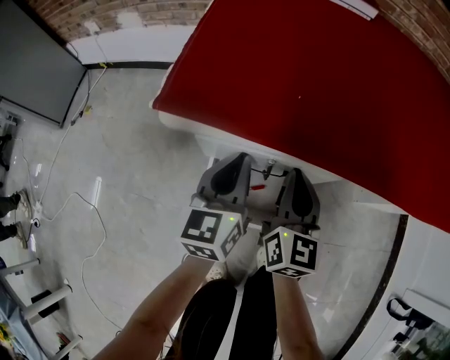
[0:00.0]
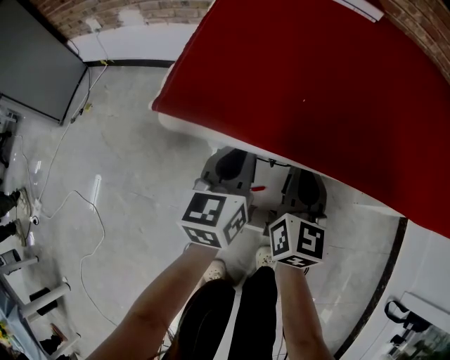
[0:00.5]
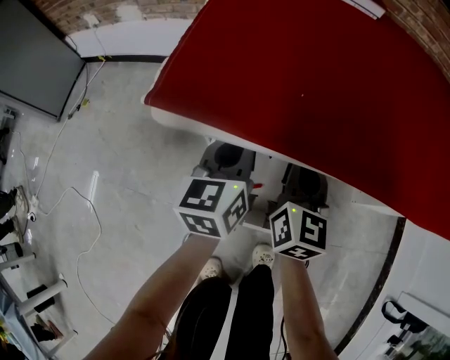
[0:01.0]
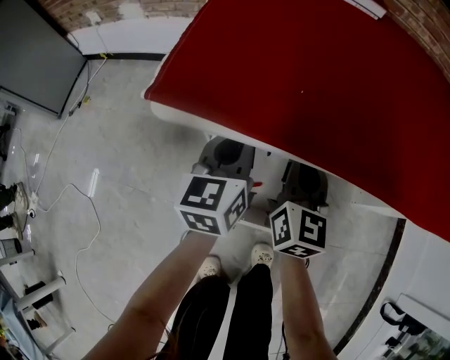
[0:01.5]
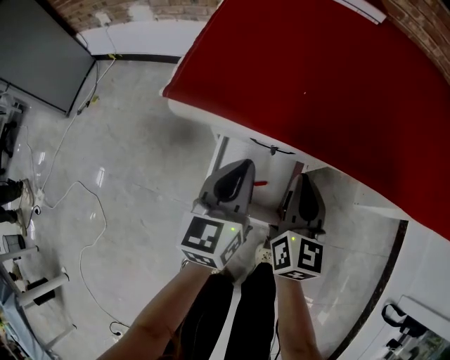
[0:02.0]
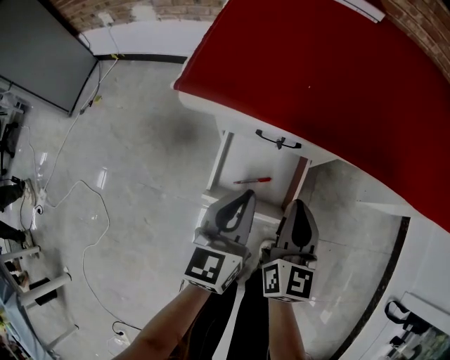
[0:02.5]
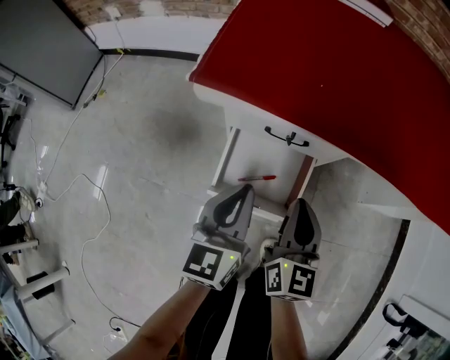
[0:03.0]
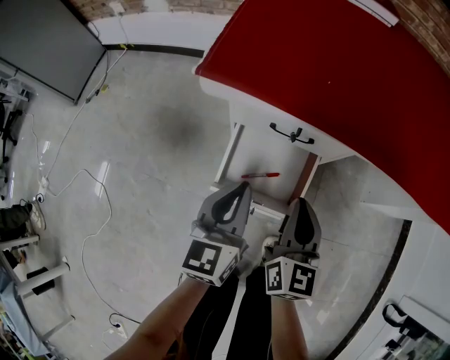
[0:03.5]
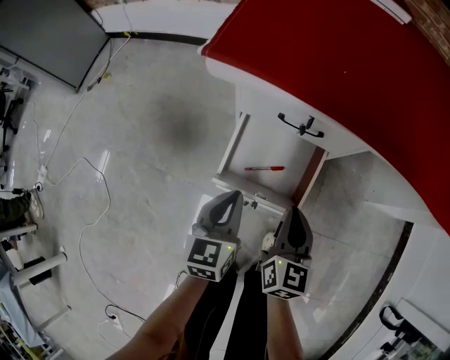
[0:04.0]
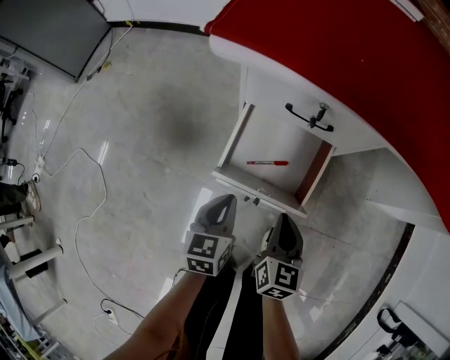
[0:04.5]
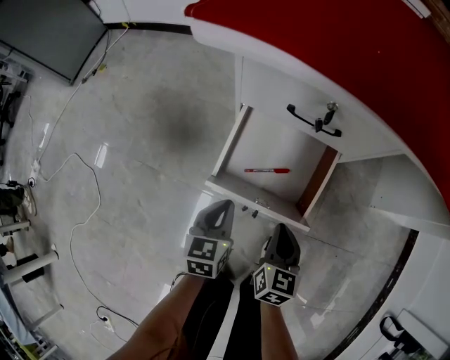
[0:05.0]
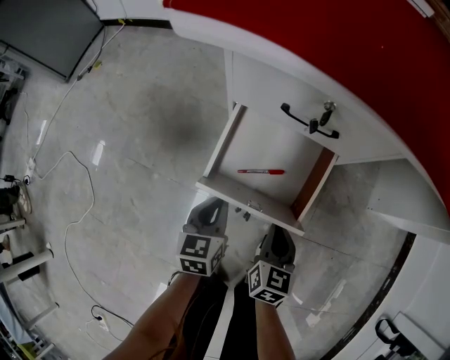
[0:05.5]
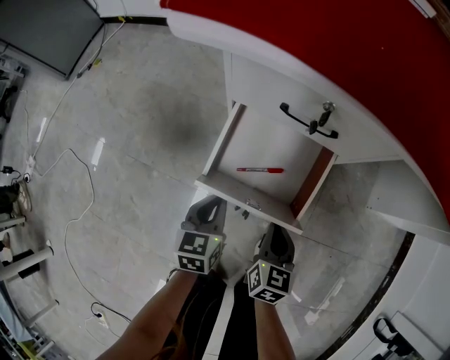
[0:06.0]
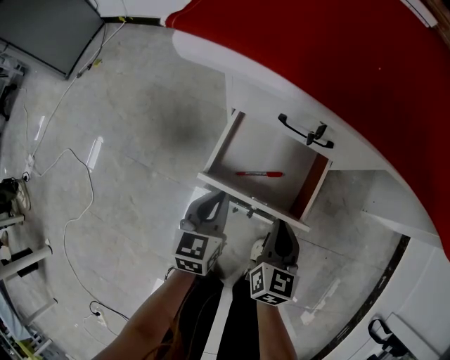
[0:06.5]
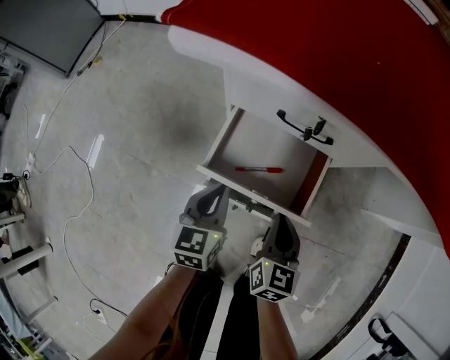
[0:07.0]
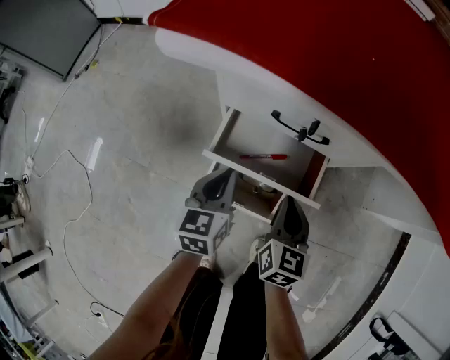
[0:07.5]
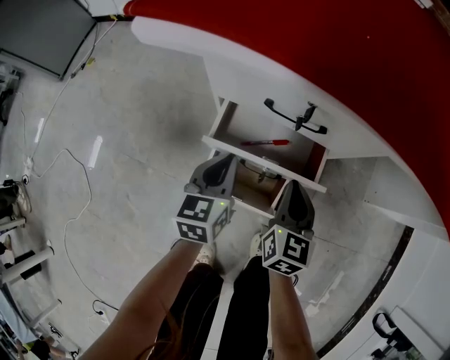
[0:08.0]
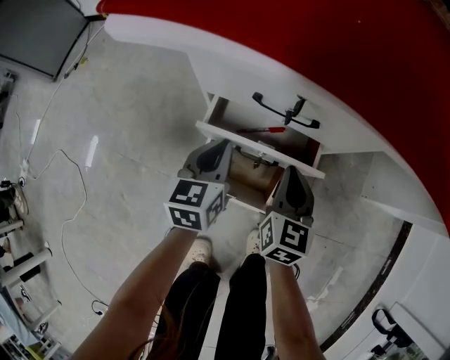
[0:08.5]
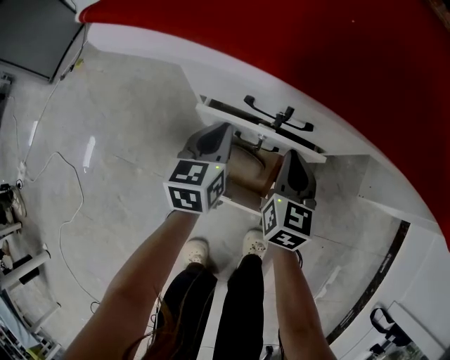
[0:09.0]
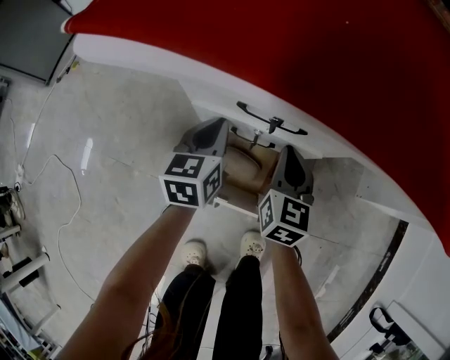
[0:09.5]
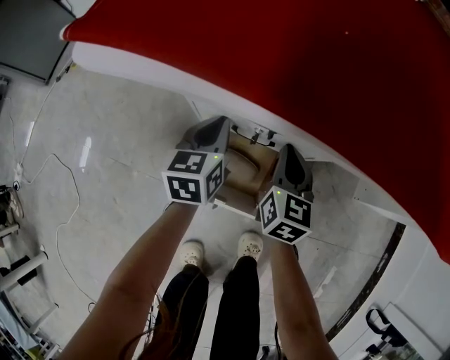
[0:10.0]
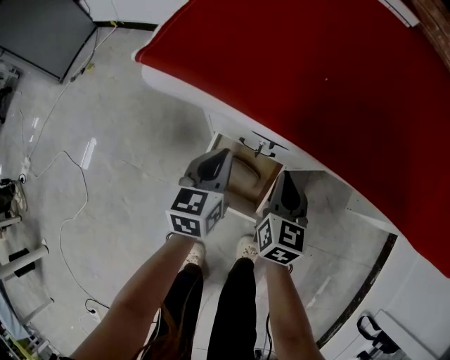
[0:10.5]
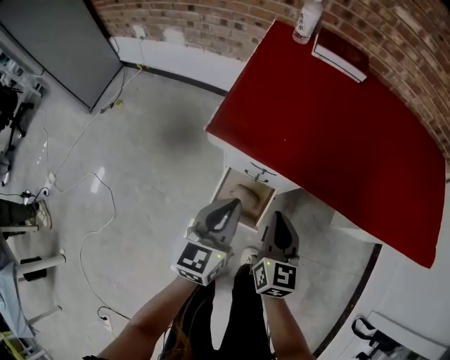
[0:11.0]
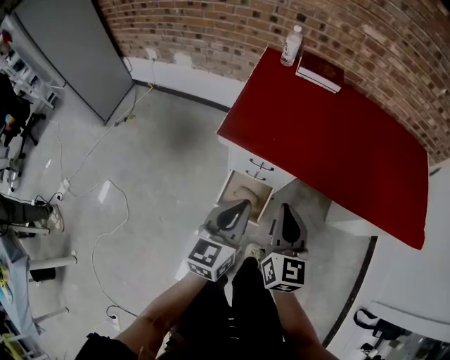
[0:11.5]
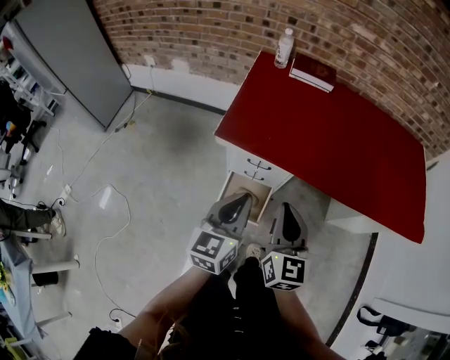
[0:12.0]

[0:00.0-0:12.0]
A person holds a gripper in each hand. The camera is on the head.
0:00.0 to 0:02.0: There are only small adjustments of the grippers.
0:02.0 to 0:04.0: Both grippers travel together backward and downward, some 15 cm.
0:04.0 to 0:06.0: The grippers both shift downward by some 15 cm.
0:06.0 to 0:08.0: The two grippers go some 10 cm forward.
0:08.0 to 0:10.0: The grippers both shift forward by about 10 cm.
0:10.0 to 0:12.0: Both grippers travel together upward and backward, about 50 cm. The left gripper rotates some 20 degrees.

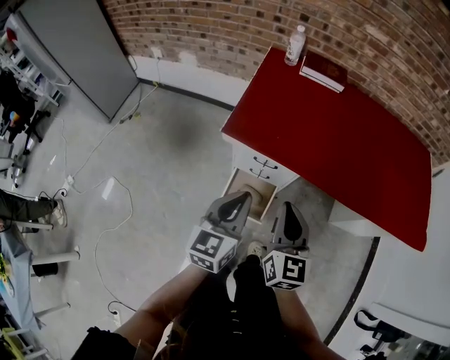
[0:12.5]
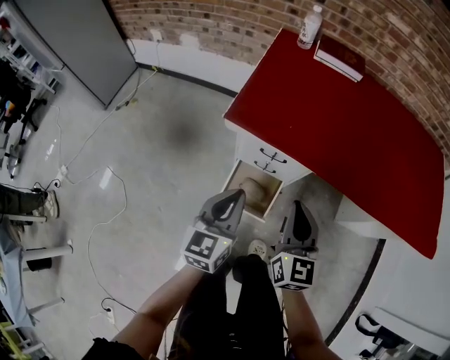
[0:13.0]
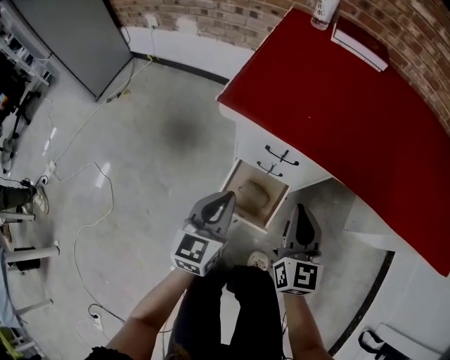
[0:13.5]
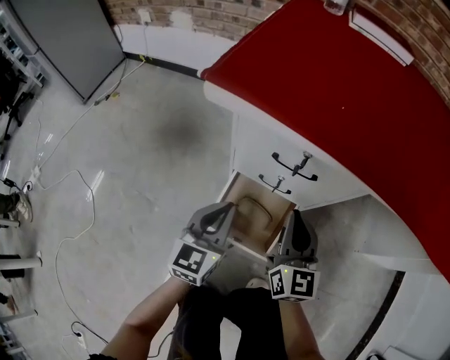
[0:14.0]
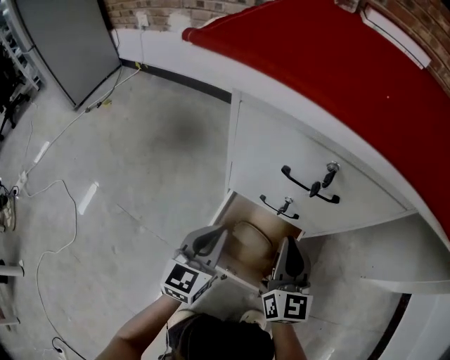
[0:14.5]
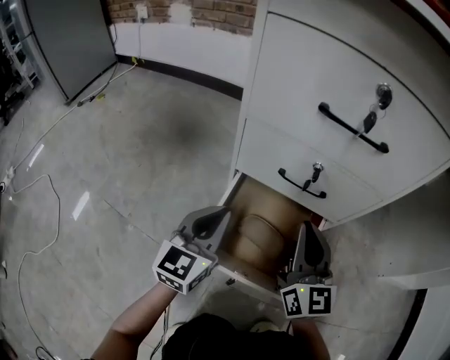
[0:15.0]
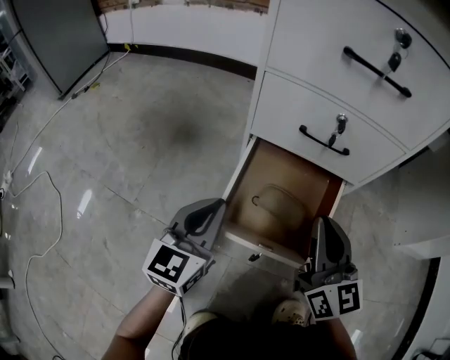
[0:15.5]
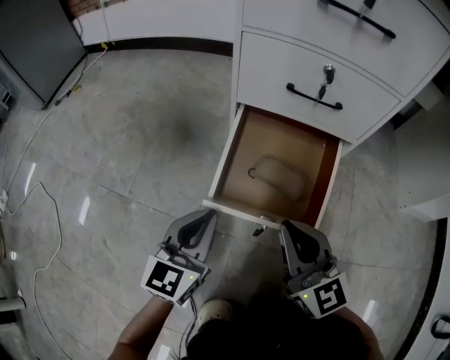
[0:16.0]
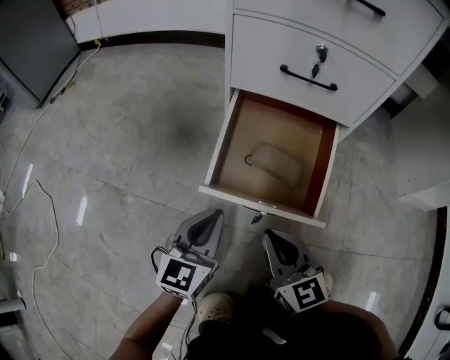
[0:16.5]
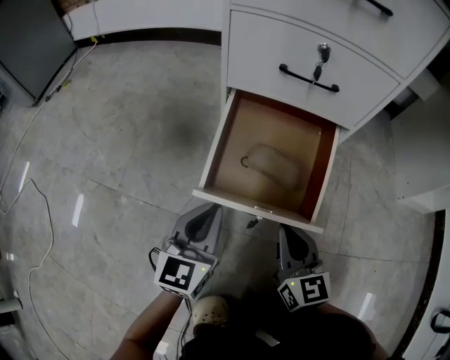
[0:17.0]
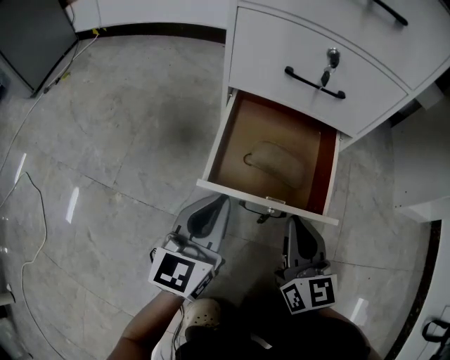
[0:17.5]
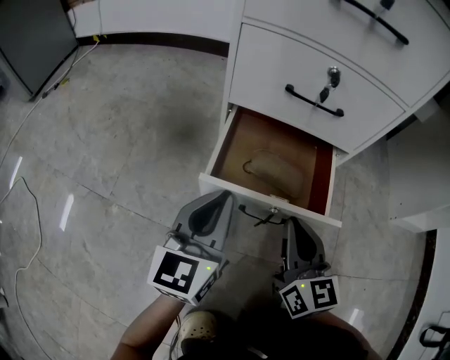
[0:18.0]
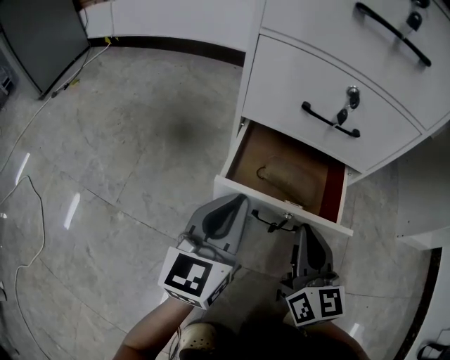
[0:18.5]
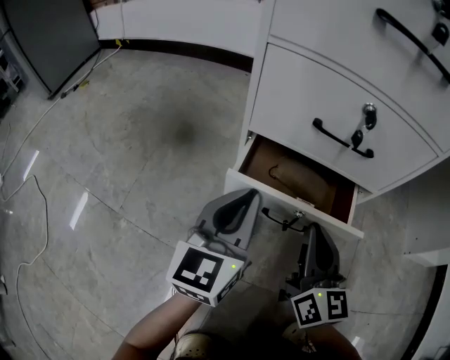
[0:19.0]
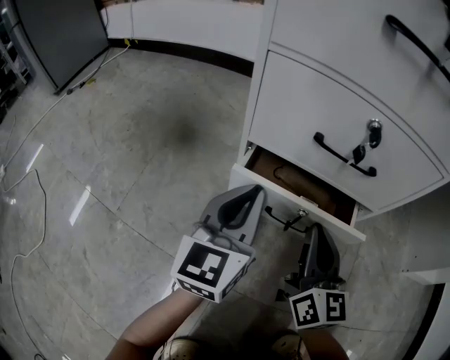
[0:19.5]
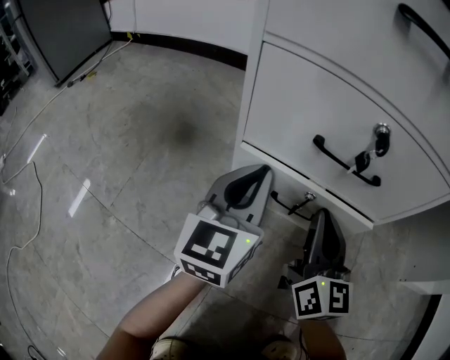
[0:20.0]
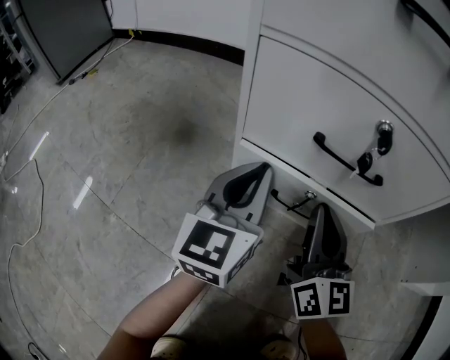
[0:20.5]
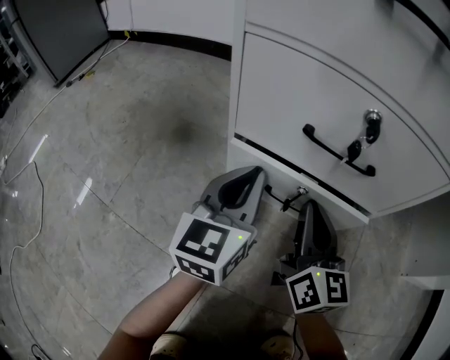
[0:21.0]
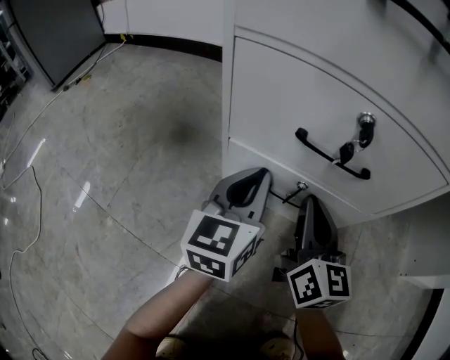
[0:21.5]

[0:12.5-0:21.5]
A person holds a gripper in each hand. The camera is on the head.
0:12.5 to 0:14.5: The two grippers go approximately 50 cm downward.
0:14.5 to 0:17.0: Both grippers move downward and backward, roughly 25 cm.
0:17.0 to 0:19.5: The grippers both shift forward by approximately 15 cm.
0:19.5 to 0:21.5: Both grippers move forward, about 5 cm.

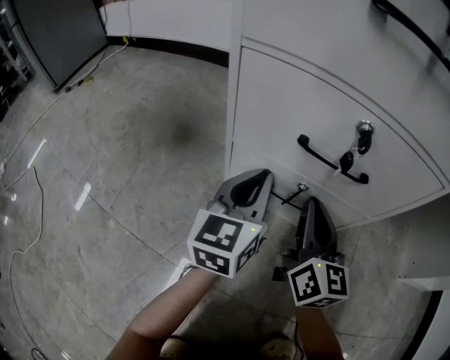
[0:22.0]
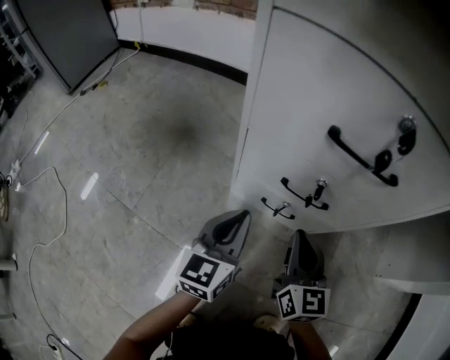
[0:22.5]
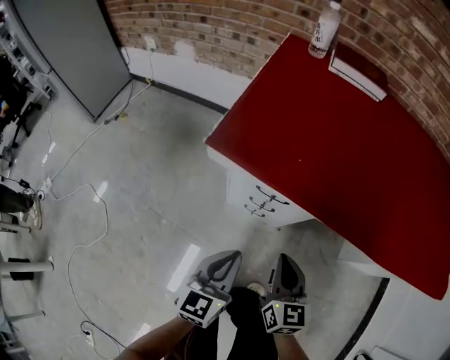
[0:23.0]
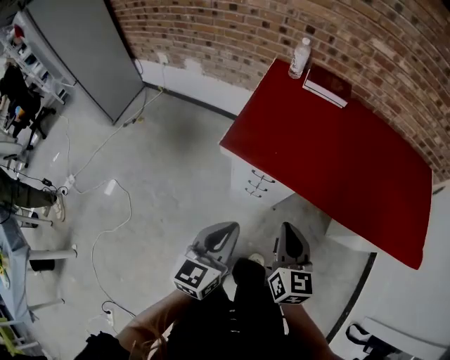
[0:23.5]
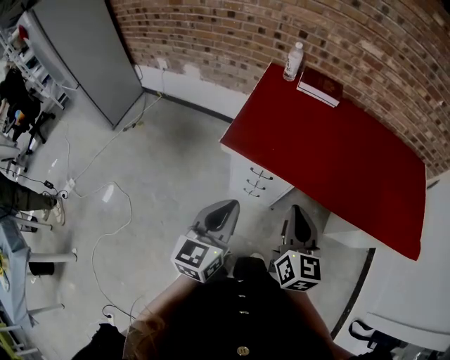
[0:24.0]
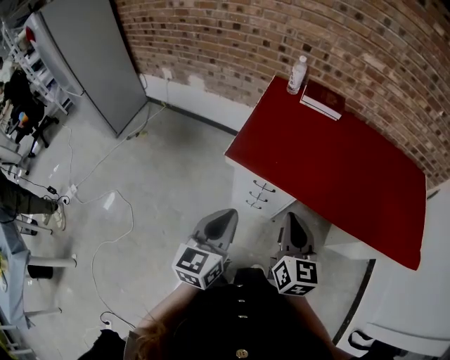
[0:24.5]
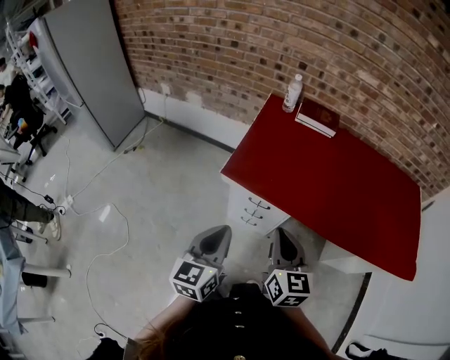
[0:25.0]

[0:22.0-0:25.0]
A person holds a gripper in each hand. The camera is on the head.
0:22.0 to 0:23.5: The grippers both shift upward by about 70 cm.
0:23.5 to 0:25.0: The right gripper shifts by about 5 cm.

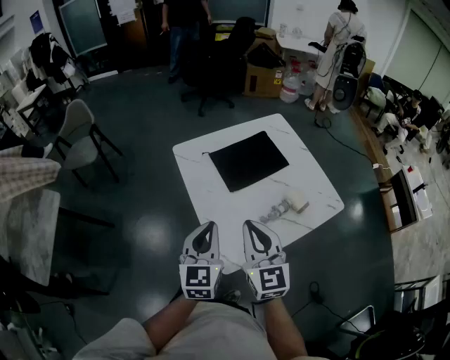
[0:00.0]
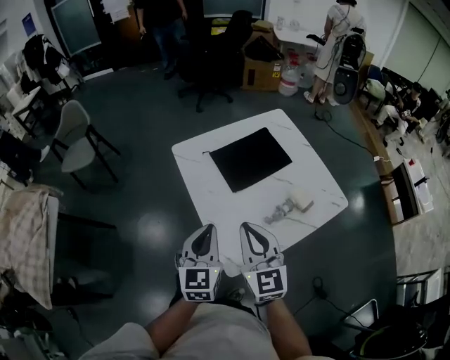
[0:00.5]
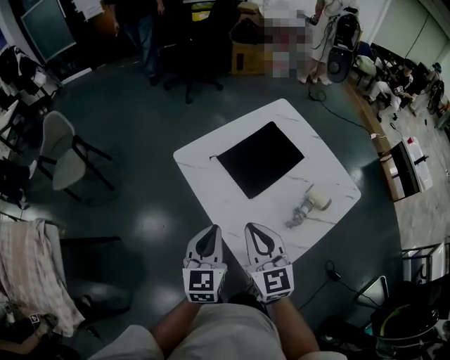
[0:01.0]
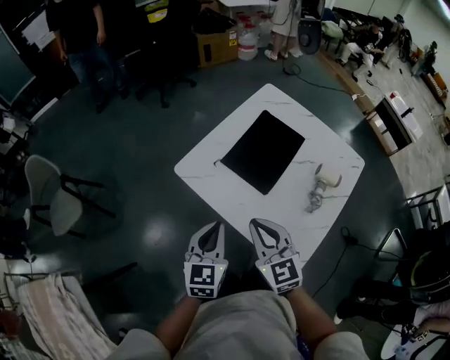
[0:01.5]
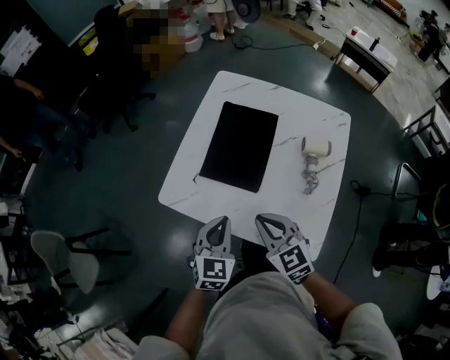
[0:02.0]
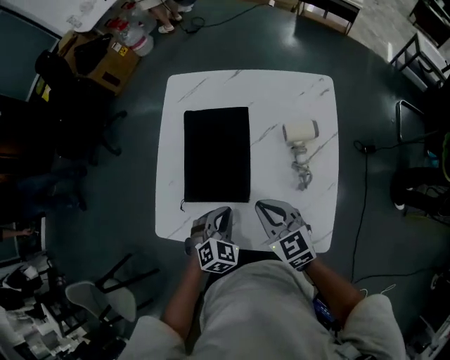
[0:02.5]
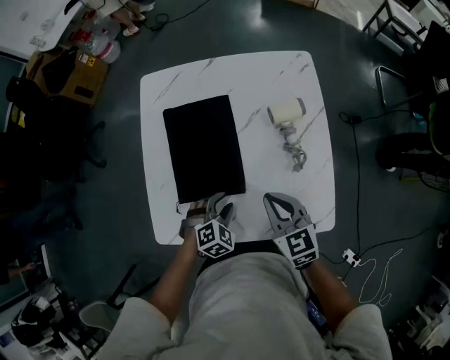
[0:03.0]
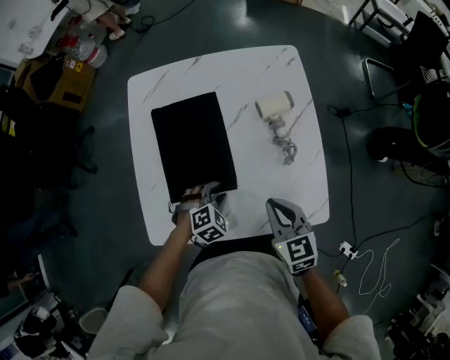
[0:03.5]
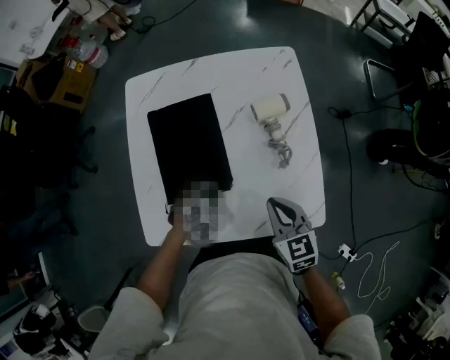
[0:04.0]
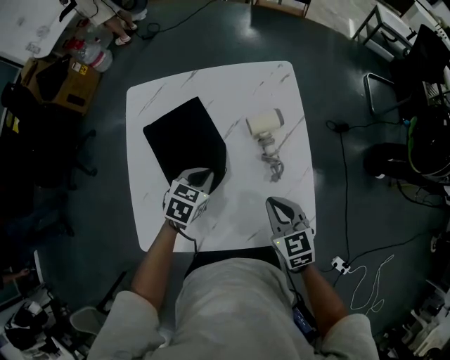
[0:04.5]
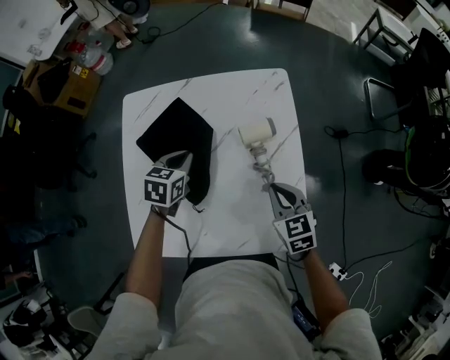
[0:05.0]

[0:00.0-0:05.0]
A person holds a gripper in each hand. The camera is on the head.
0:00.0 to 0:02.5: The right gripper changes place by some 30 cm, and turns by roughly 40 degrees. The left gripper shifts by about 35 cm, and points its fingers roughly 40 degrees further downward.
0:02.5 to 0:05.0: The right gripper ends up roughly 15 cm from where it was, and swivels roughly 30 degrees. Meanwhile the left gripper moves about 10 cm downward and comes back, rotates about 30 degrees, and opens, then closes again.
